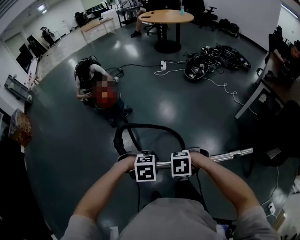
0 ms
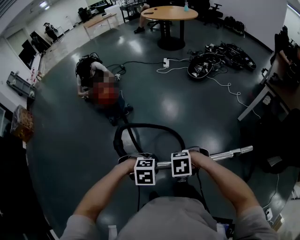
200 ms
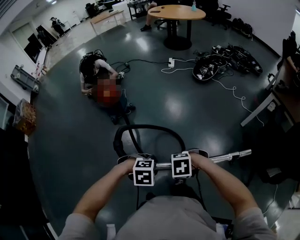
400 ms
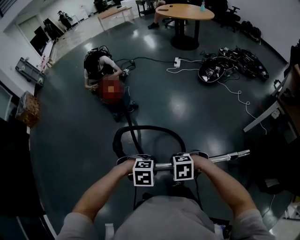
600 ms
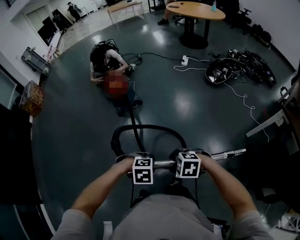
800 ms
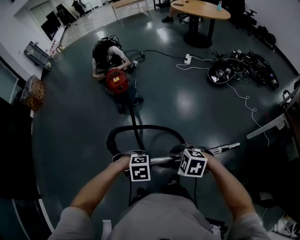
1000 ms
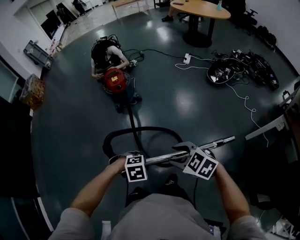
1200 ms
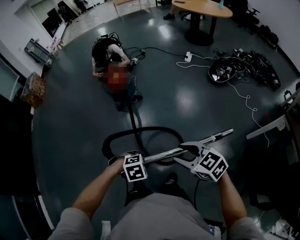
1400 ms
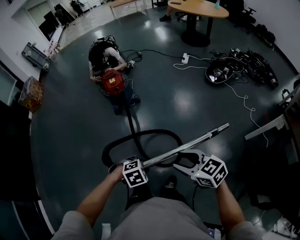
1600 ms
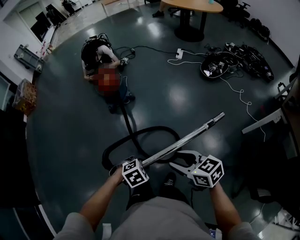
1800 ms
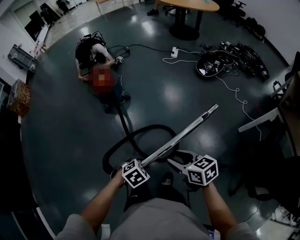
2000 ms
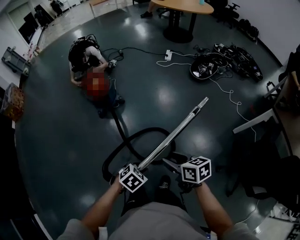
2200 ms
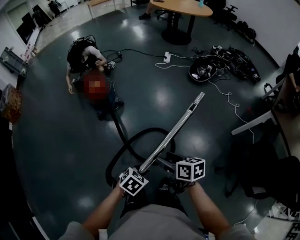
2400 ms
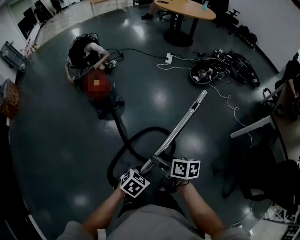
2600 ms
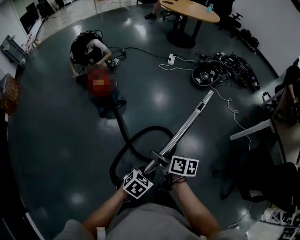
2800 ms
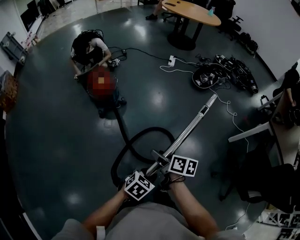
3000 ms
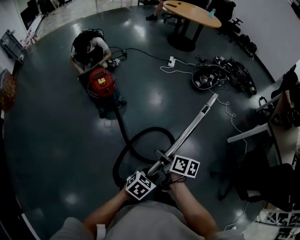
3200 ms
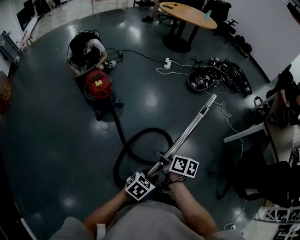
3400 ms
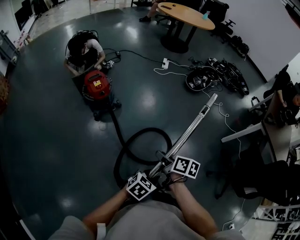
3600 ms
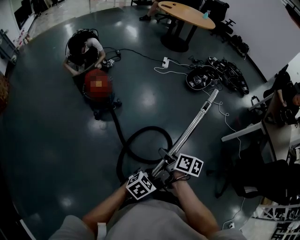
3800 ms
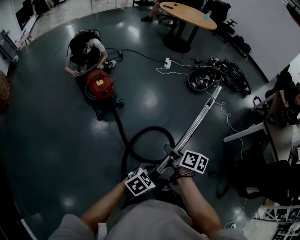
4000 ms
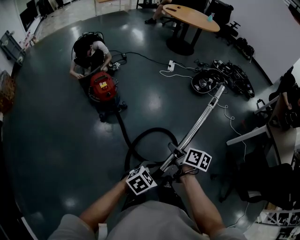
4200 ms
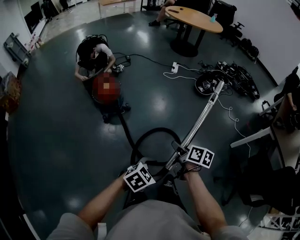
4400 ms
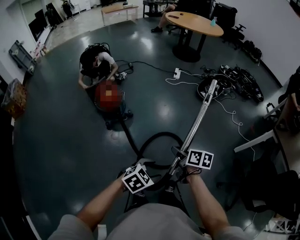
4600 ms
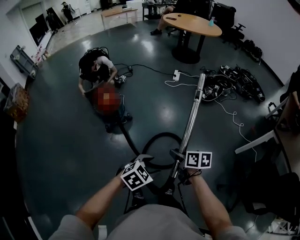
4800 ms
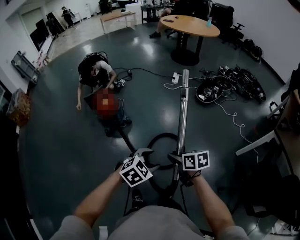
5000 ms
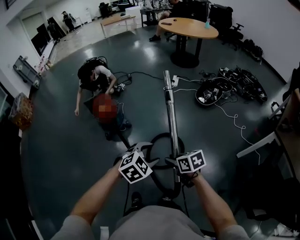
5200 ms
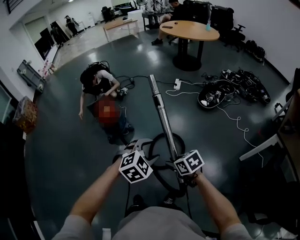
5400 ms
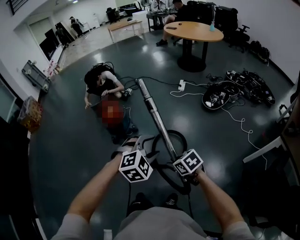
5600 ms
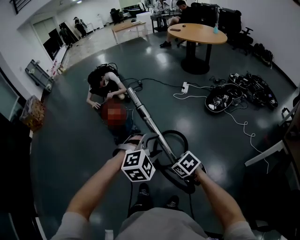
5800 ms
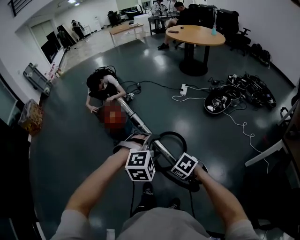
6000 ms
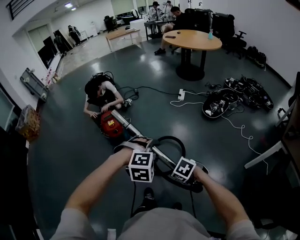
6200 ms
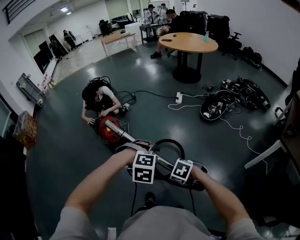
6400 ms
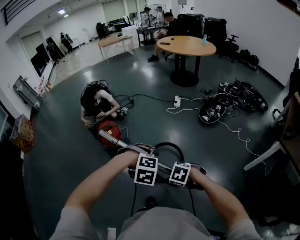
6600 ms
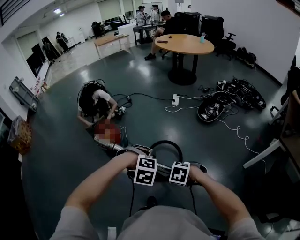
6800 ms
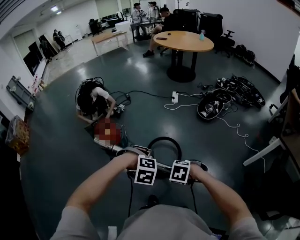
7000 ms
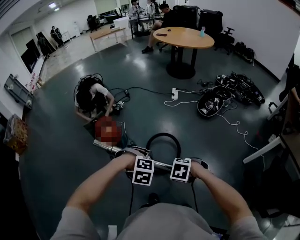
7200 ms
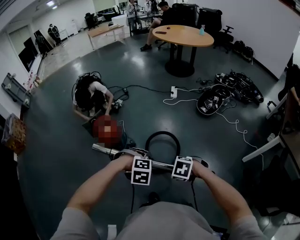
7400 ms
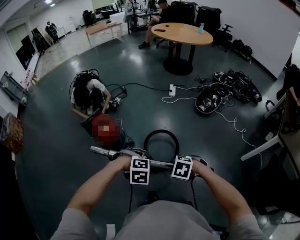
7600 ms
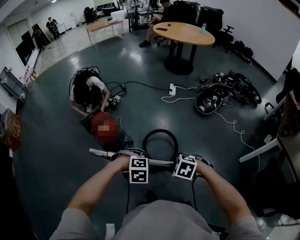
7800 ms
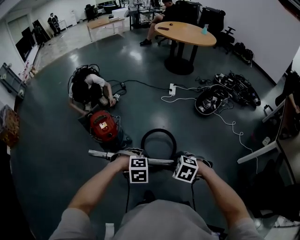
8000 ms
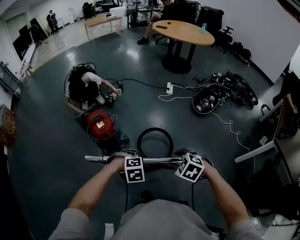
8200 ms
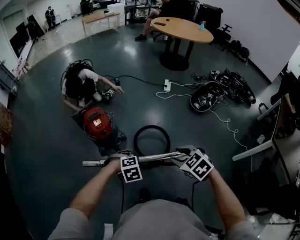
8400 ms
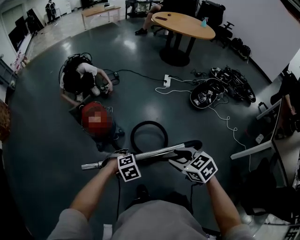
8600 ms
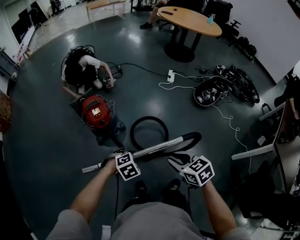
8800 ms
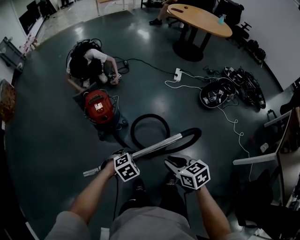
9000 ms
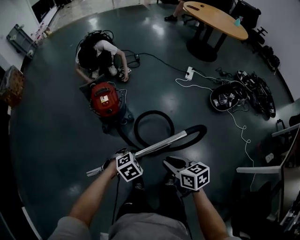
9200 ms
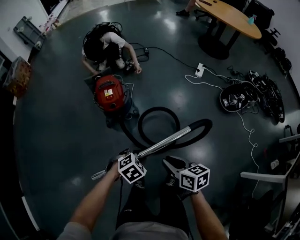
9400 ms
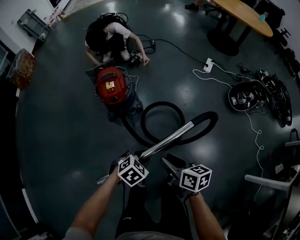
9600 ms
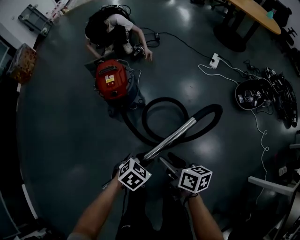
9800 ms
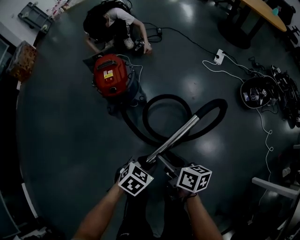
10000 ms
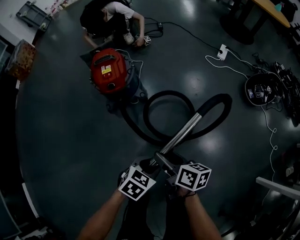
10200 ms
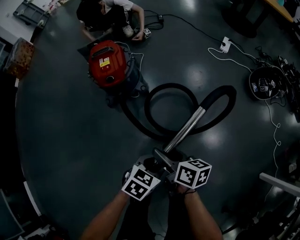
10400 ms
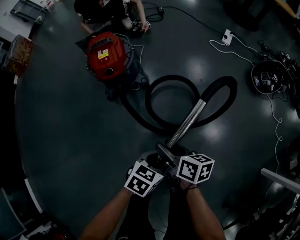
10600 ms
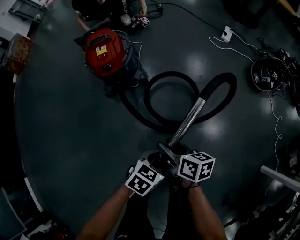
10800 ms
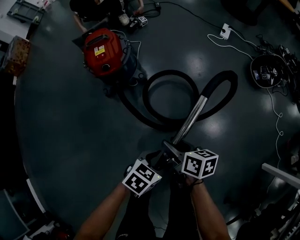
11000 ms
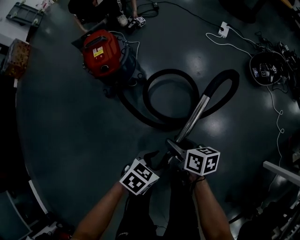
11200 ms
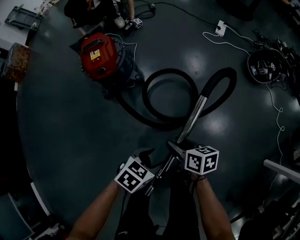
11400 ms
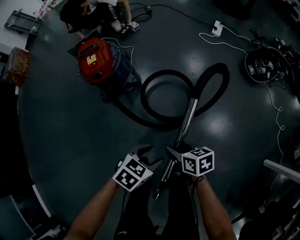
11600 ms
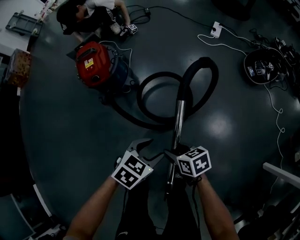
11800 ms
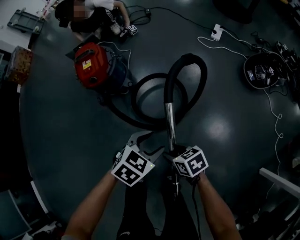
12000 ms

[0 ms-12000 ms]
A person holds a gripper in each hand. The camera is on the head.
0 ms to 1600 ms: The right gripper ends up about 25 cm from where it was, angles its fingers upward, by some 50 degrees, and opens its fingers; the left gripper moves roughly 15 cm, and swivels about 30 degrees.
1600 ms to 3000 ms: The right gripper moves about 25 cm, and twists approximately 60 degrees clockwise, seen from behind; the left gripper shifts by roughly 10 cm, and swivels approximately 30 degrees.
3000 ms to 4400 ms: The left gripper shifts by approximately 5 cm, and opens up. The right gripper heads forward, covering approximately 10 cm, and closes.
4400 ms to 6000 ms: The left gripper ends up roughly 25 cm from where it was, and twists approximately 50 degrees clockwise, seen from behind. The right gripper changes place by roughly 10 cm, and rotates around the line of its fingers by approximately 70 degrees, counterclockwise from behind.
6000 ms to 7600 ms: The right gripper moves roughly 15 cm. The left gripper changes place by about 25 cm, rotates about 30 degrees, and closes its fingers.
7600 ms to 9000 ms: The left gripper is displaced downward by about 10 cm, and rolls counterclockwise, seen from behind, by approximately 40 degrees; the right gripper travels upward and back again, approximately 10 cm each way, and angles its fingers upward, by some 30 degrees.
9000 ms to 10400 ms: The left gripper goes some 20 cm downward and to the right, and rolls counterclockwise, seen from behind, by about 40 degrees; the right gripper shifts some 30 cm downward, changes its angle by about 40 degrees, and opens its fingers.
10400 ms to 12000 ms: The right gripper moves about 15 cm, and swivels roughly 40 degrees. Meanwhile the left gripper changes place by some 10 cm, and opens.

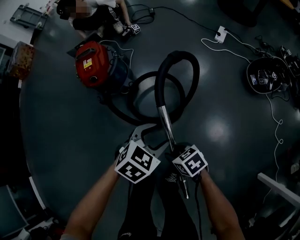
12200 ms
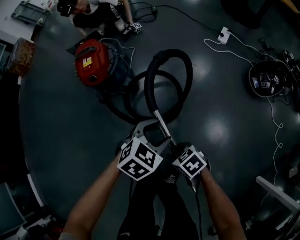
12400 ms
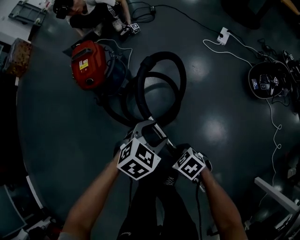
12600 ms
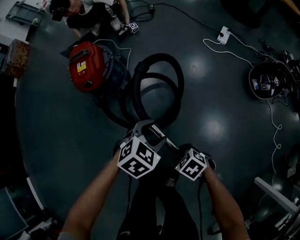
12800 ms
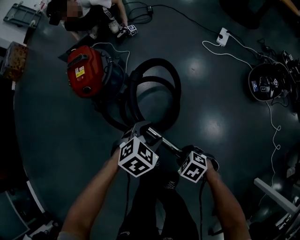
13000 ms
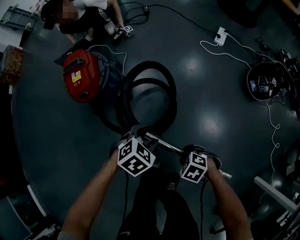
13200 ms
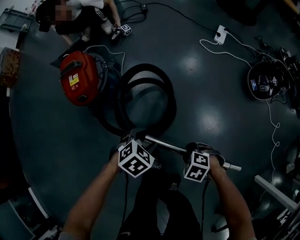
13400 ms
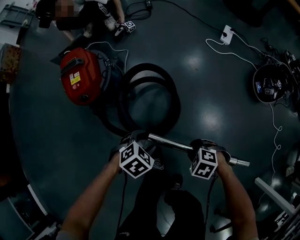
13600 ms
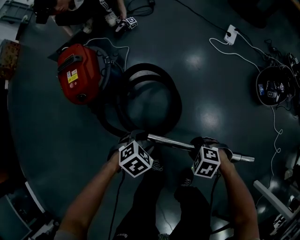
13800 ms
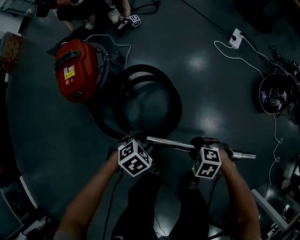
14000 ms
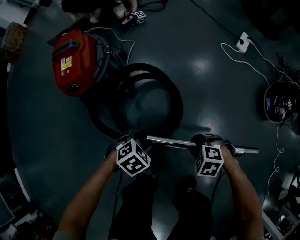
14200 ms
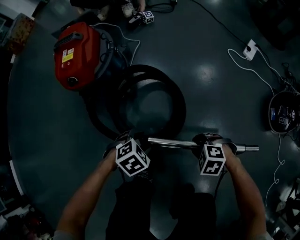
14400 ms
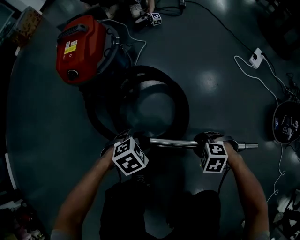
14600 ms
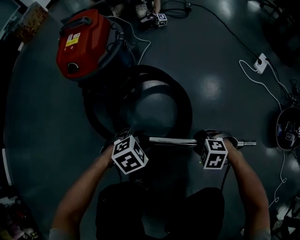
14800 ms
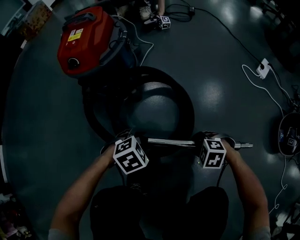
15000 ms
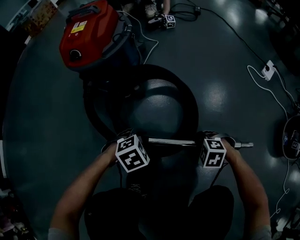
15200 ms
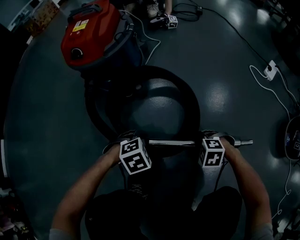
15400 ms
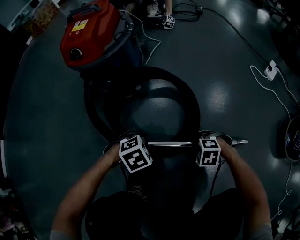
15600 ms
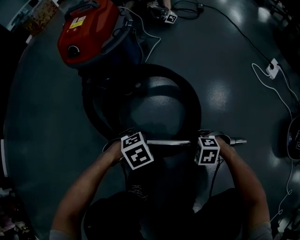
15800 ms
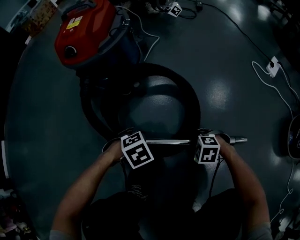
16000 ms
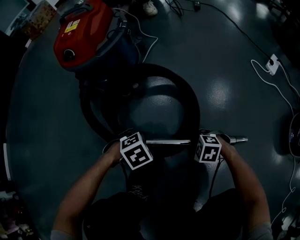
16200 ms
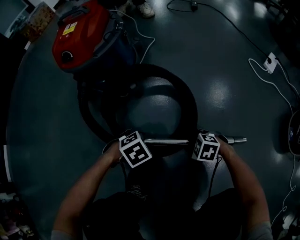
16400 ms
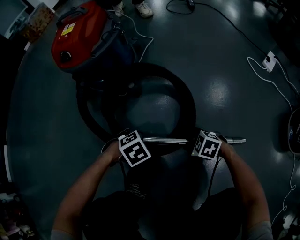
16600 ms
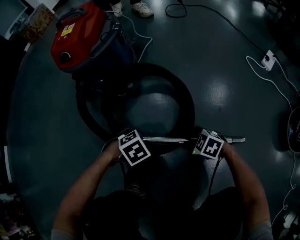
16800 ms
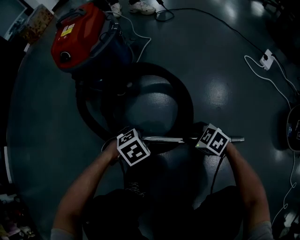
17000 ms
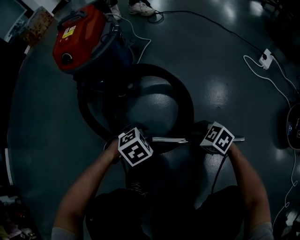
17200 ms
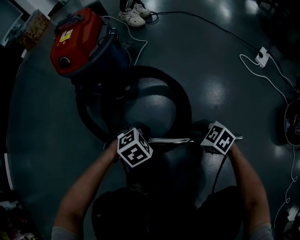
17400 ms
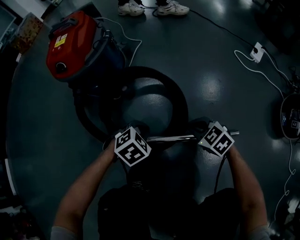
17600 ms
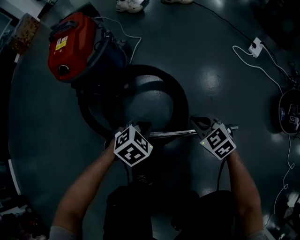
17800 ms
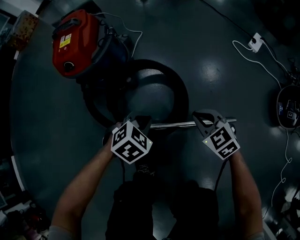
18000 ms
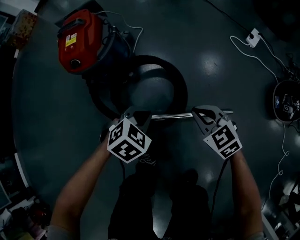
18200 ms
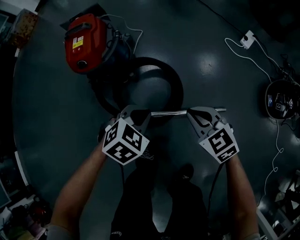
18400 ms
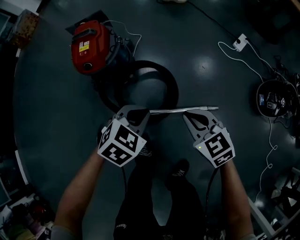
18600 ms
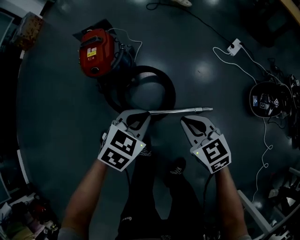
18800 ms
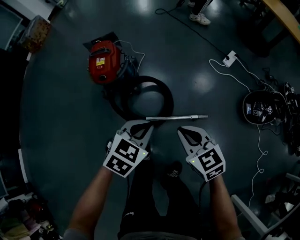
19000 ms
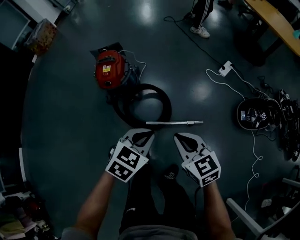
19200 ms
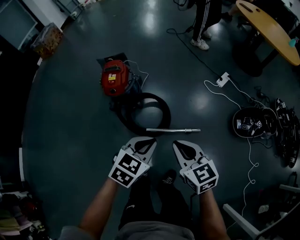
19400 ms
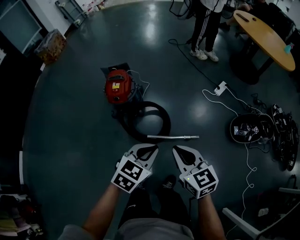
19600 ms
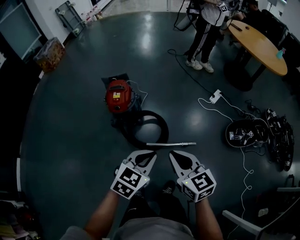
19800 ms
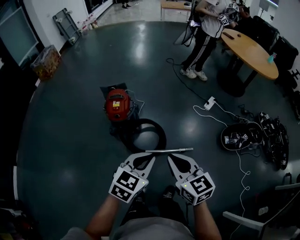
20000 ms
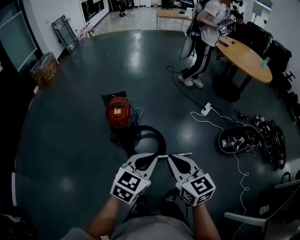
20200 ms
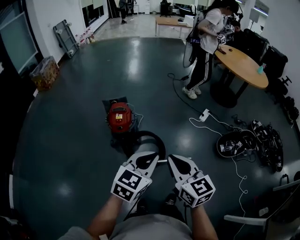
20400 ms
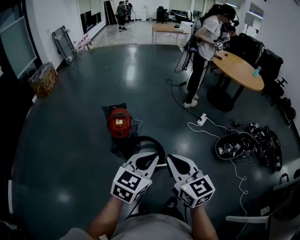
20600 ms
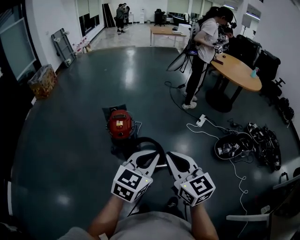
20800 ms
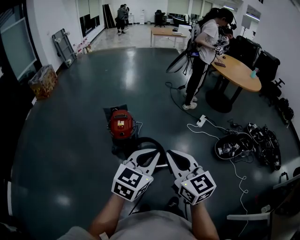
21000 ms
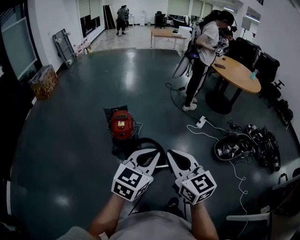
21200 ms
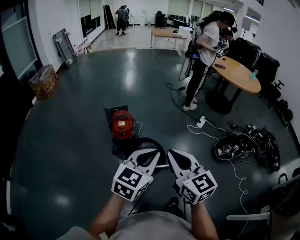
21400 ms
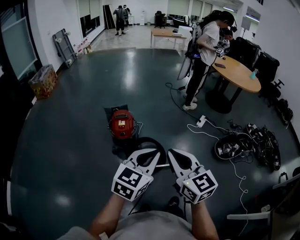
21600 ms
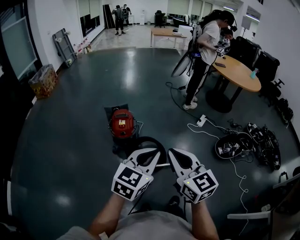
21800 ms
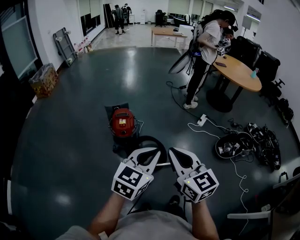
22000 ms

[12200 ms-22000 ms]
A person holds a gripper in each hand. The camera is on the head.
12200 ms to 13600 ms: The left gripper shifts roughly 15 cm downward; the right gripper ends up roughly 15 cm from where it was, and swivels roughly 40 degrees.
13600 ms to 15000 ms: The grippers both shift downward by about 25 cm. The right gripper swivels about 30 degrees.
15000 ms to 16400 ms: Both grippers move downward, about 5 cm.
16400 ms to 17800 ms: Both grippers move upward, about 15 cm. The left gripper closes its fingers; the right gripper changes its angle by some 40 degrees, and closes its fingers.
17800 ms to 19200 ms: The grippers both shift upward by approximately 50 cm. The right gripper changes its angle by approximately 20 degrees, while the left gripper swivels about 20 degrees.
19200 ms to 20600 ms: The right gripper goes approximately 35 cm upward and to the left, and rotates roughly 20 degrees. The left gripper shifts some 30 cm upward, and rotates roughly 30 degrees.
20600 ms to 22000 ms: The right gripper moves about 5 cm.

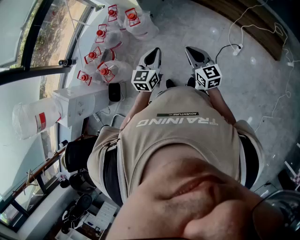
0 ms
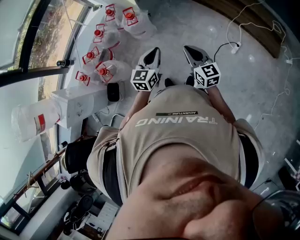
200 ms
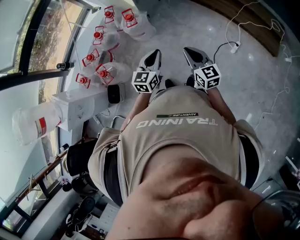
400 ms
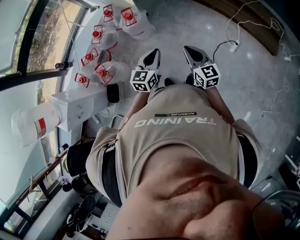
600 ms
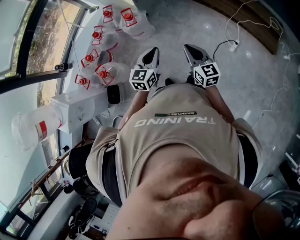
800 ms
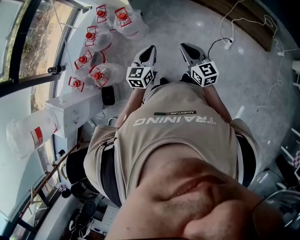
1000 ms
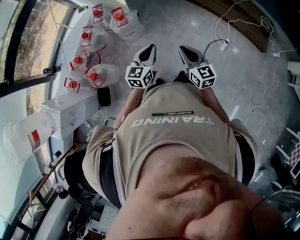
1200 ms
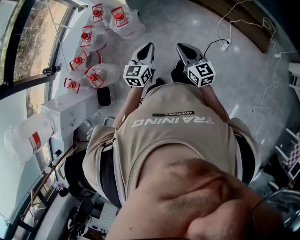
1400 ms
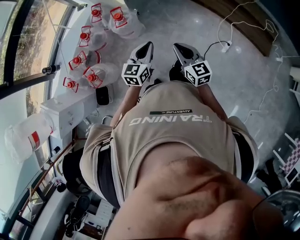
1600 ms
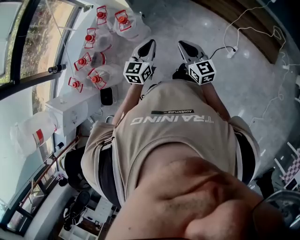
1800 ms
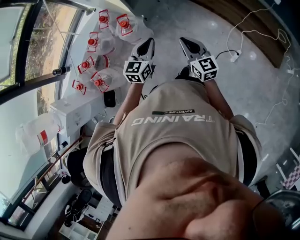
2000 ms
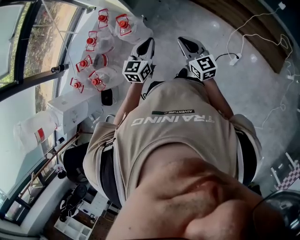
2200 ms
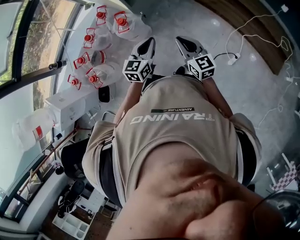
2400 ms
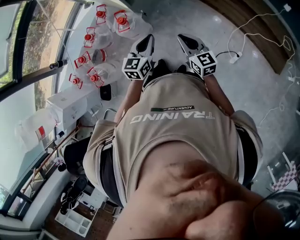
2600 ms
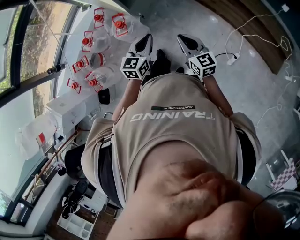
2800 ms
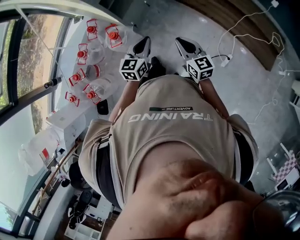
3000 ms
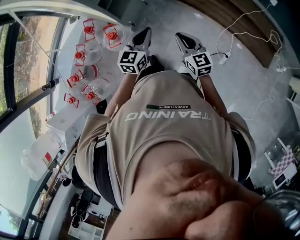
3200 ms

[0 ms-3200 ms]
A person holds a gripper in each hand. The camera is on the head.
0 ms to 1600 ms: The two grippers go roughly 10 cm forward.
1600 ms to 3200 ms: The two grippers go some 30 cm forward.
